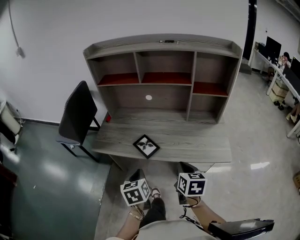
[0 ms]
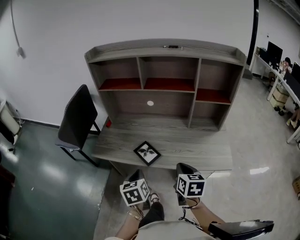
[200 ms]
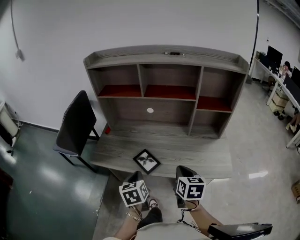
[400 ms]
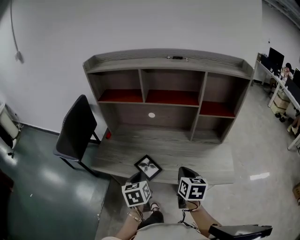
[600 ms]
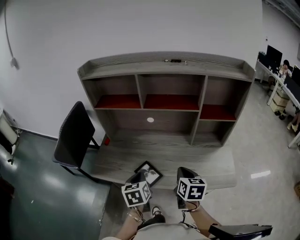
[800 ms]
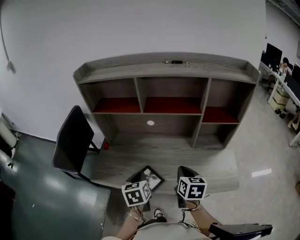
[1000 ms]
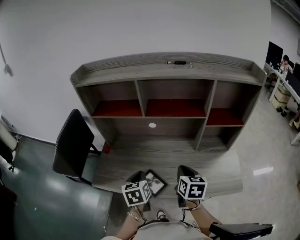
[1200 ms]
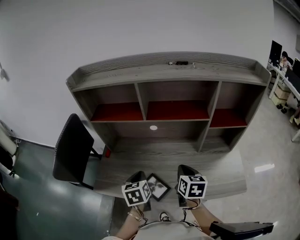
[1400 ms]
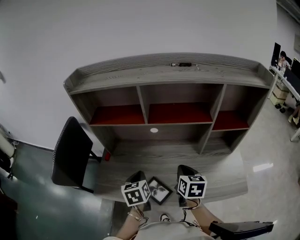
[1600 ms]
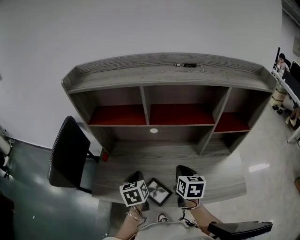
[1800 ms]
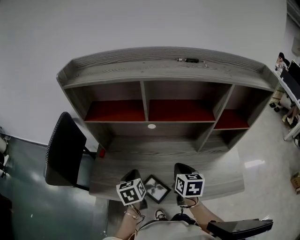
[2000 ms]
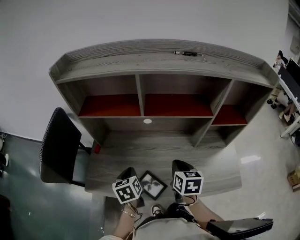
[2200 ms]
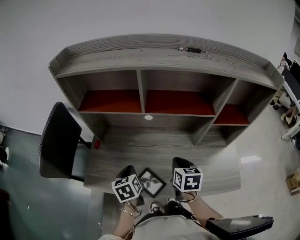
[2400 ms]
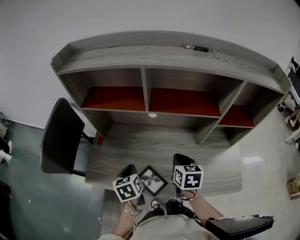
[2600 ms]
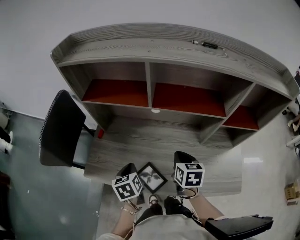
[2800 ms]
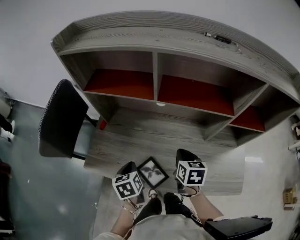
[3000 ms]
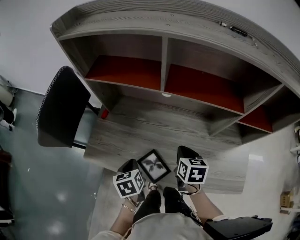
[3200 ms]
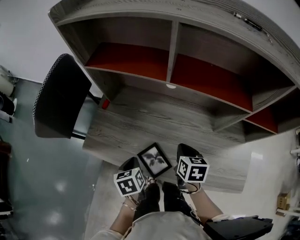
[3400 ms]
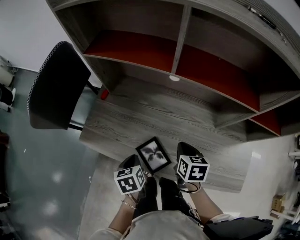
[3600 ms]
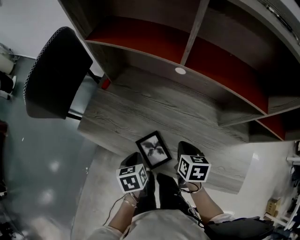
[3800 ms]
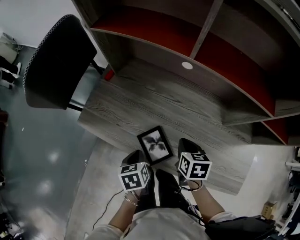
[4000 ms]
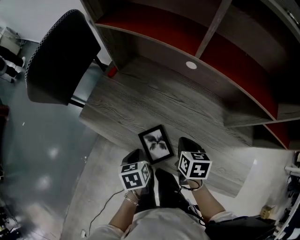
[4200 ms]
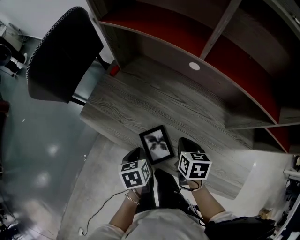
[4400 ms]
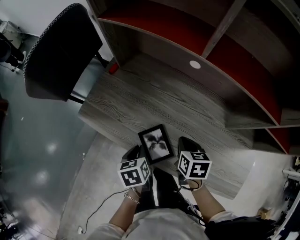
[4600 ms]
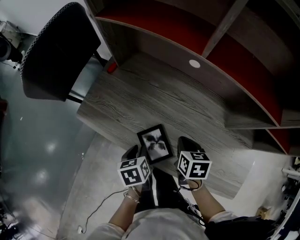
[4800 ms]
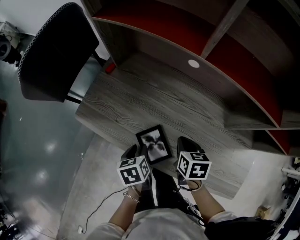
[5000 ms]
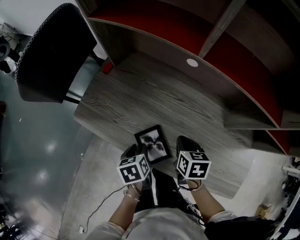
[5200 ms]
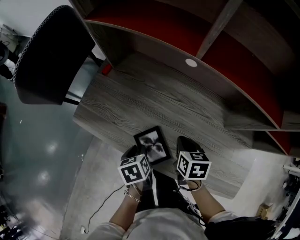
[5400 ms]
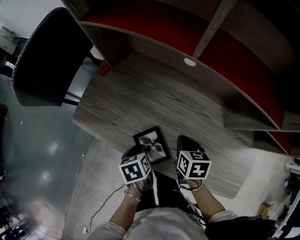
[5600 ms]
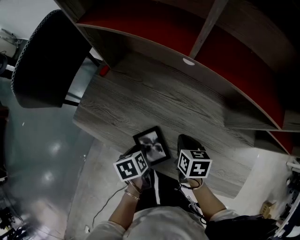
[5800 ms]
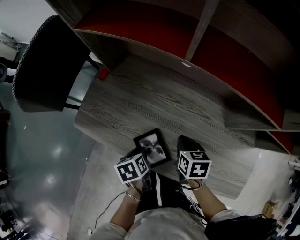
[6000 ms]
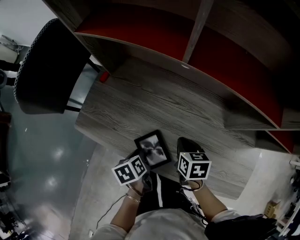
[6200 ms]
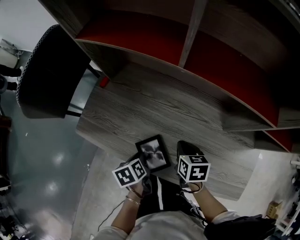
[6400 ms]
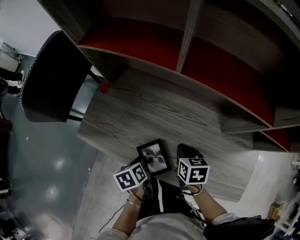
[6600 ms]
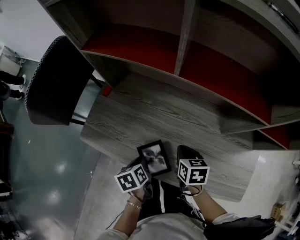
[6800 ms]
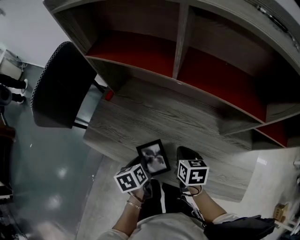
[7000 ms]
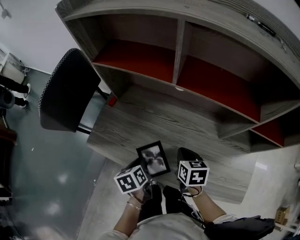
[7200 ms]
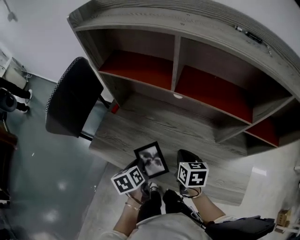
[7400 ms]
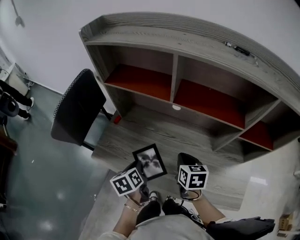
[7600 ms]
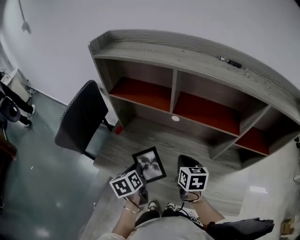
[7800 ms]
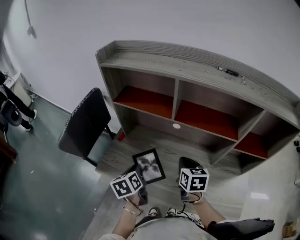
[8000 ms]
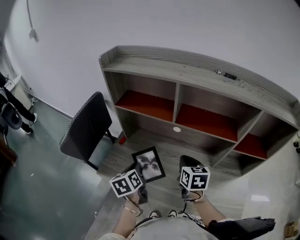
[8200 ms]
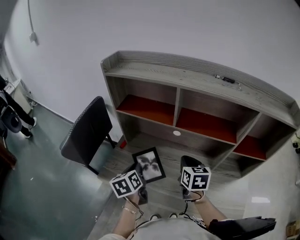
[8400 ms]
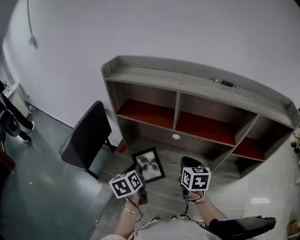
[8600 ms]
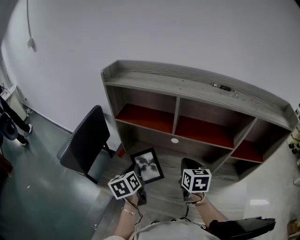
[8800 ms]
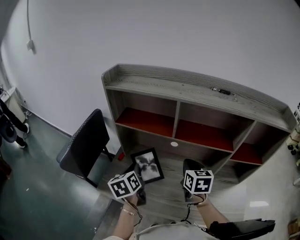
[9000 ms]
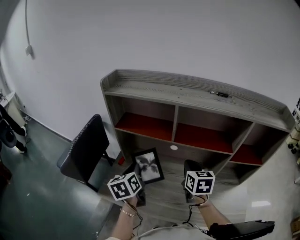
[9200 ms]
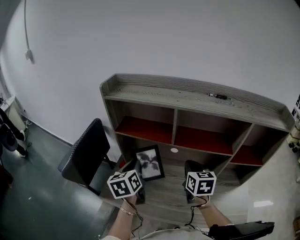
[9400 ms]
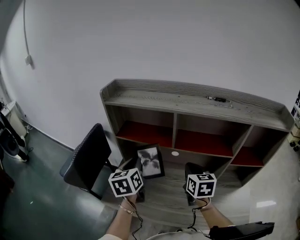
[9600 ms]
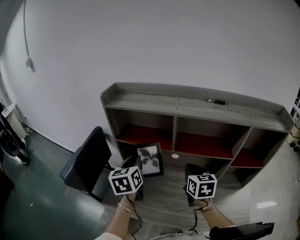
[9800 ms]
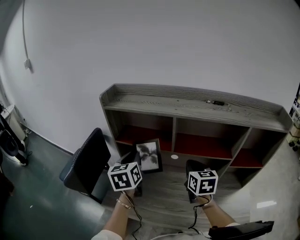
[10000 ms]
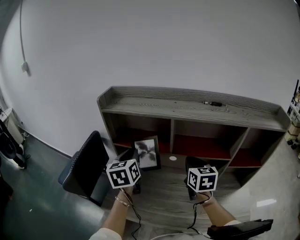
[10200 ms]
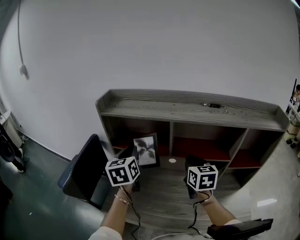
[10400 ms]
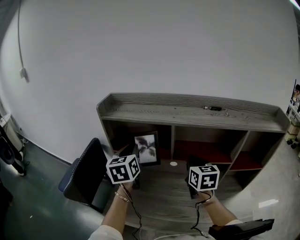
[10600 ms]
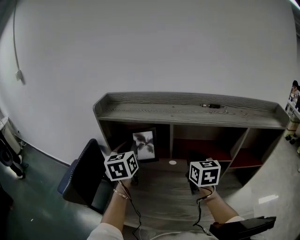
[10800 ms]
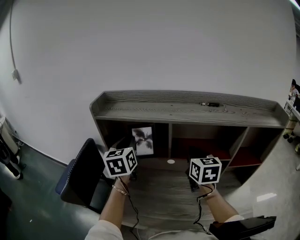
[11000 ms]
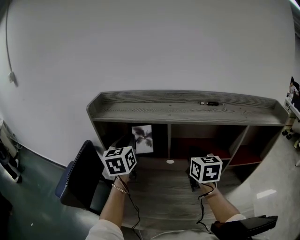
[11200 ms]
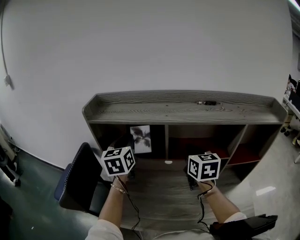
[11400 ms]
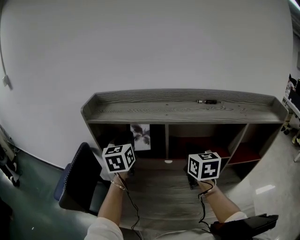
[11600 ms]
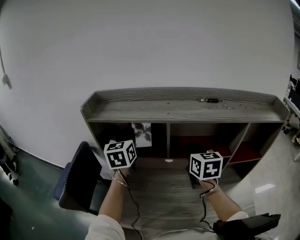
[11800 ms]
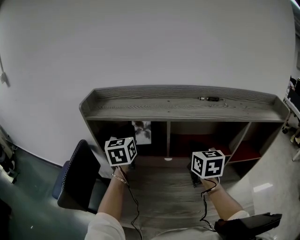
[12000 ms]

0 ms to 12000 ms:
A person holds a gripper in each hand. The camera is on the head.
0 ms to 1600 ms: The grippers both shift forward by approximately 30 cm.
1600 ms to 3000 ms: The grippers both shift downward by roughly 5 cm.
3000 ms to 4400 ms: The right gripper goes some 10 cm downward, and swivels about 20 degrees. Meanwhile the left gripper travels downward and backward by some 15 cm.
4400 ms to 6000 ms: The grippers move only a little.
6000 ms to 7600 ms: Both grippers travel together upward, roughly 15 cm. The left gripper changes its angle by roughly 20 degrees.
7600 ms to 9000 ms: Both grippers travel together upward and forward, some 15 cm.
9000 ms to 10400 ms: The left gripper heads upward and forward, covering roughly 20 cm, and changes its angle by roughly 20 degrees. The right gripper travels upward by about 10 cm.
10400 ms to 12000 ms: The right gripper moves about 5 cm. The left gripper travels forward by some 10 cm.

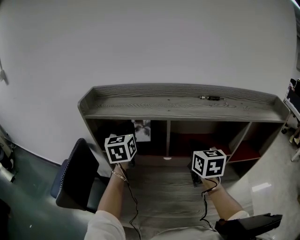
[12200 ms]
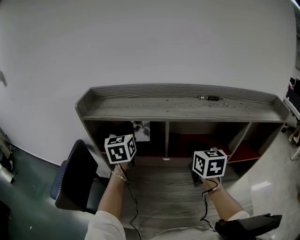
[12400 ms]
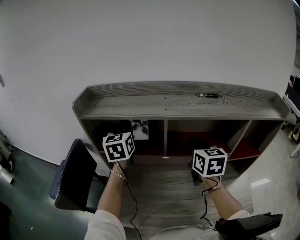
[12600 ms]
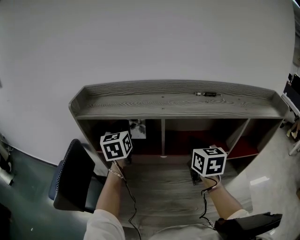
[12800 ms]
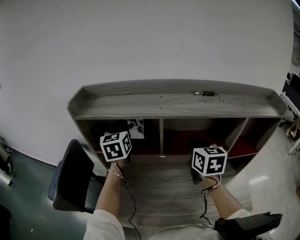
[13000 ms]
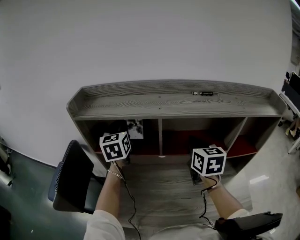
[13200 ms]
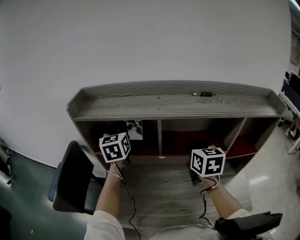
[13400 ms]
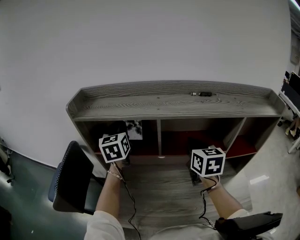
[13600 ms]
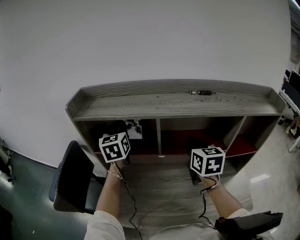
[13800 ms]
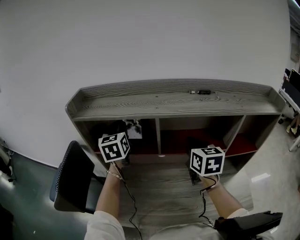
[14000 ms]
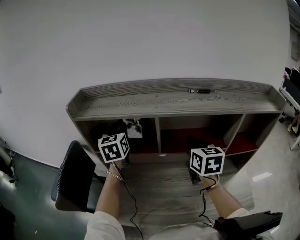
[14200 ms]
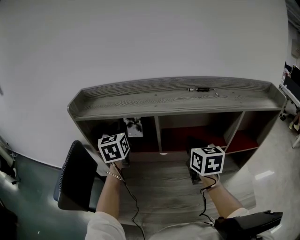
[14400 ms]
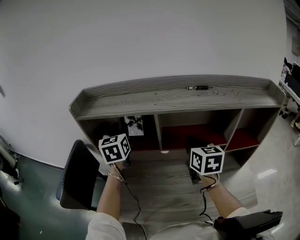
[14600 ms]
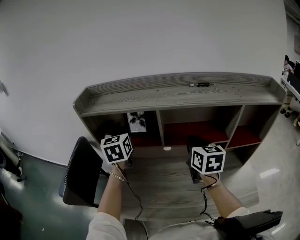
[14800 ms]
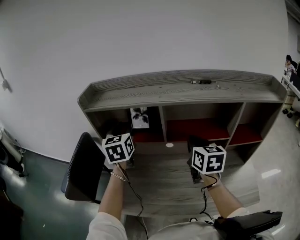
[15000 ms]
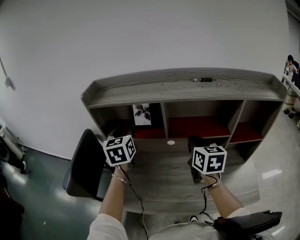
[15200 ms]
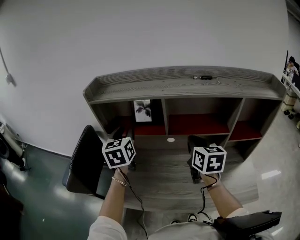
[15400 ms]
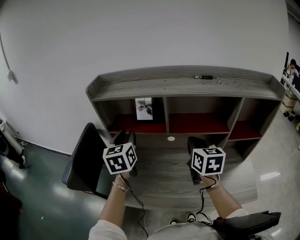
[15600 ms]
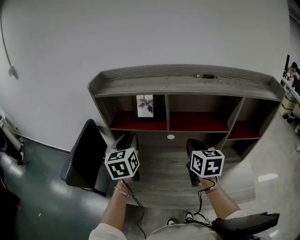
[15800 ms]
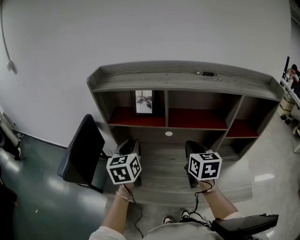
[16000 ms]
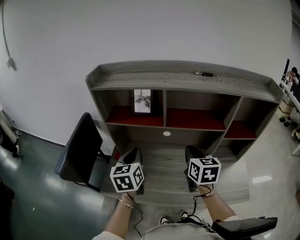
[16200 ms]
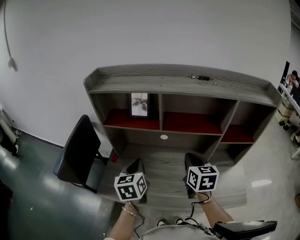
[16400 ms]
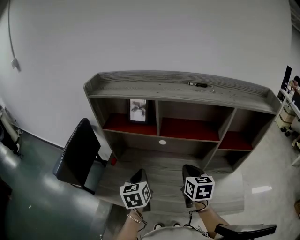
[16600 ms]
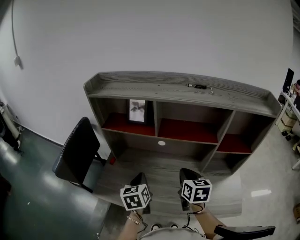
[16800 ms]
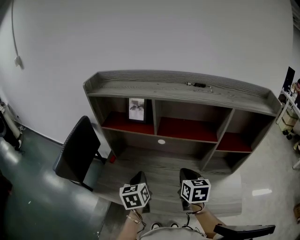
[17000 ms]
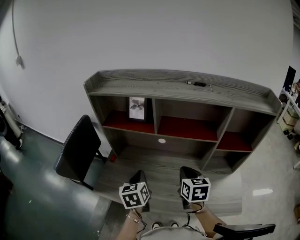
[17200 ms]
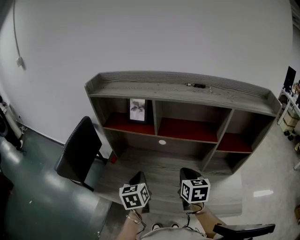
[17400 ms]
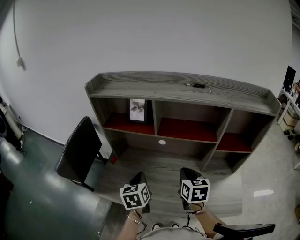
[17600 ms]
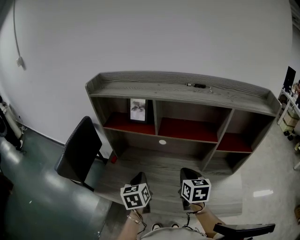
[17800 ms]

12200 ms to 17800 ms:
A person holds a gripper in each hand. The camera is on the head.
12200 ms to 13600 ms: The grippers stay close to where they were, moving slightly.
13600 ms to 15000 ms: The left gripper moves backward, about 5 cm. The right gripper ends up roughly 5 cm from where it was.
15000 ms to 16400 ms: The left gripper is displaced backward and downward by about 25 cm, and closes its fingers. Meanwhile the right gripper goes roughly 10 cm backward and downward.
16400 ms to 17800 ms: The right gripper ends up some 5 cm from where it was. The left gripper changes place by about 5 cm.

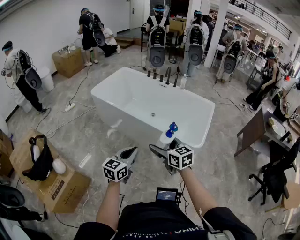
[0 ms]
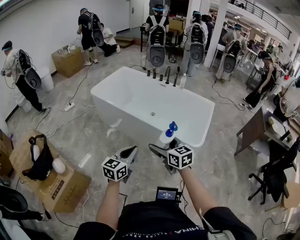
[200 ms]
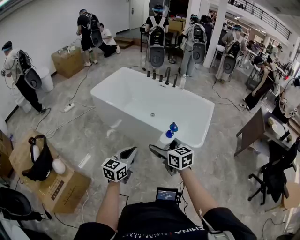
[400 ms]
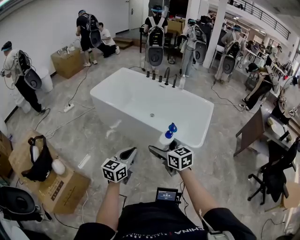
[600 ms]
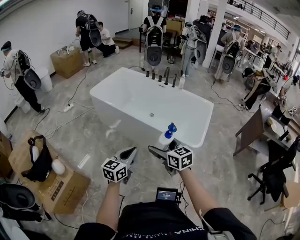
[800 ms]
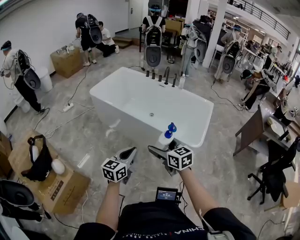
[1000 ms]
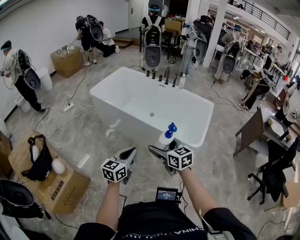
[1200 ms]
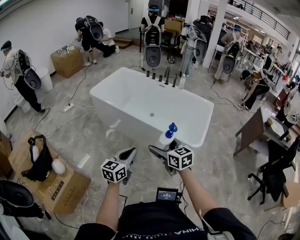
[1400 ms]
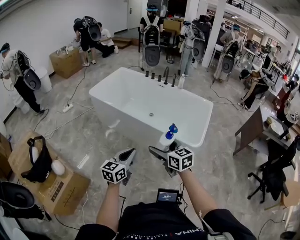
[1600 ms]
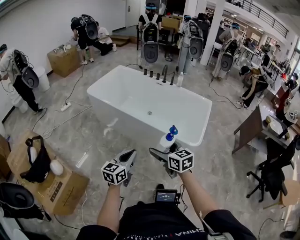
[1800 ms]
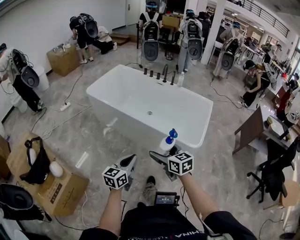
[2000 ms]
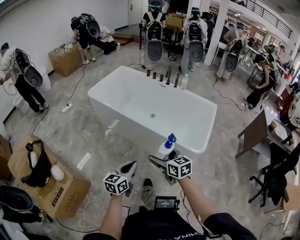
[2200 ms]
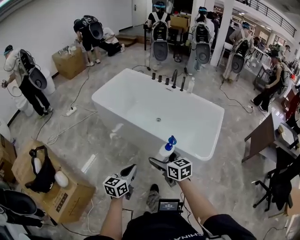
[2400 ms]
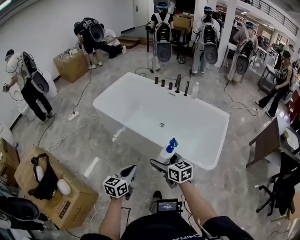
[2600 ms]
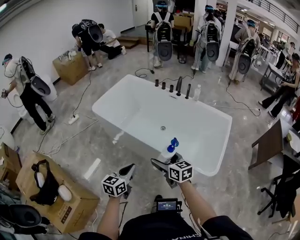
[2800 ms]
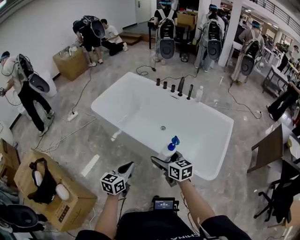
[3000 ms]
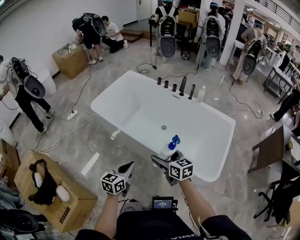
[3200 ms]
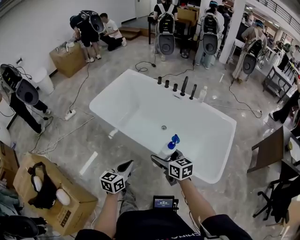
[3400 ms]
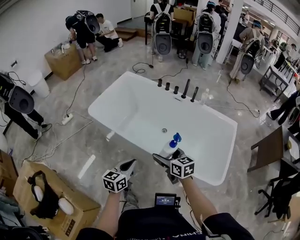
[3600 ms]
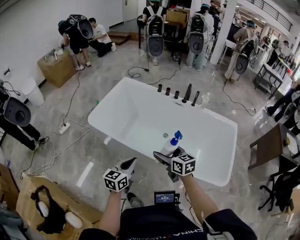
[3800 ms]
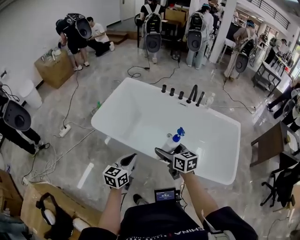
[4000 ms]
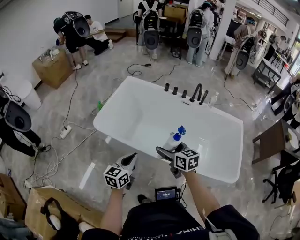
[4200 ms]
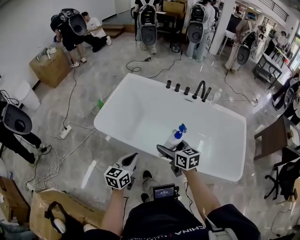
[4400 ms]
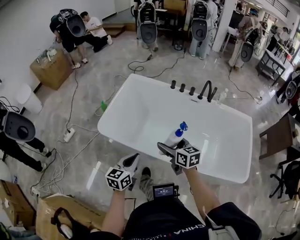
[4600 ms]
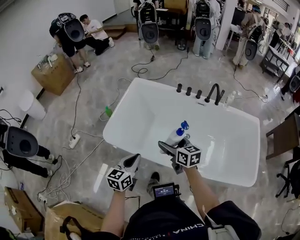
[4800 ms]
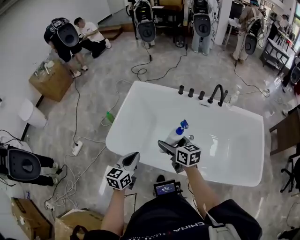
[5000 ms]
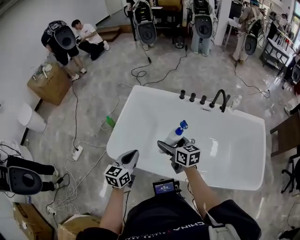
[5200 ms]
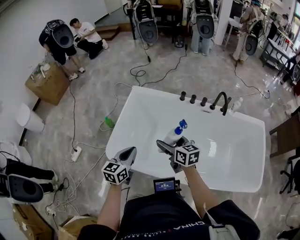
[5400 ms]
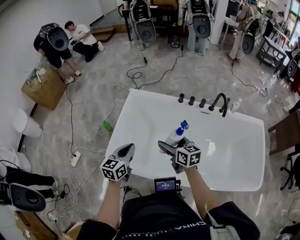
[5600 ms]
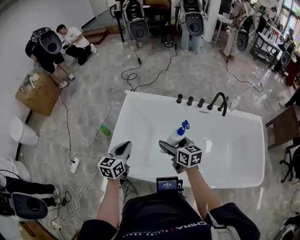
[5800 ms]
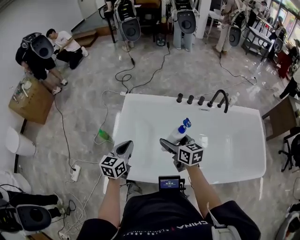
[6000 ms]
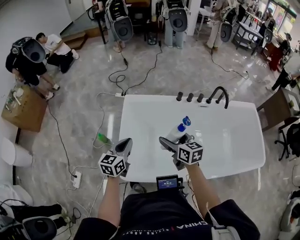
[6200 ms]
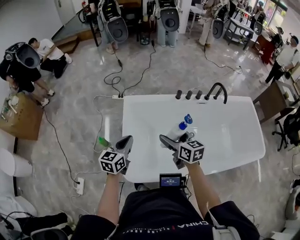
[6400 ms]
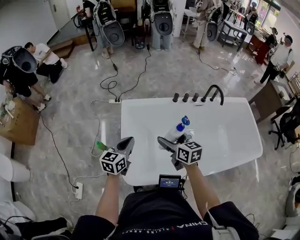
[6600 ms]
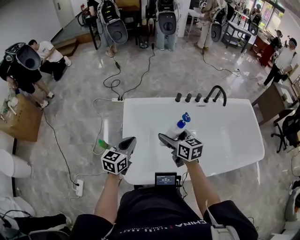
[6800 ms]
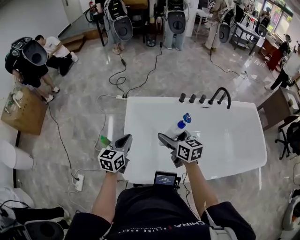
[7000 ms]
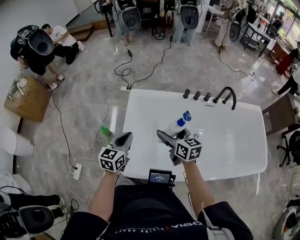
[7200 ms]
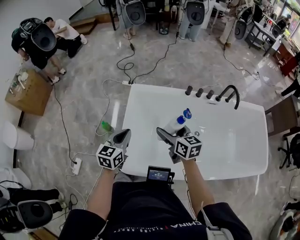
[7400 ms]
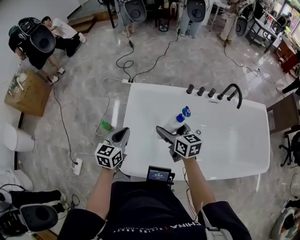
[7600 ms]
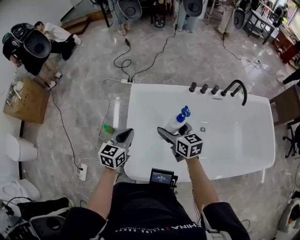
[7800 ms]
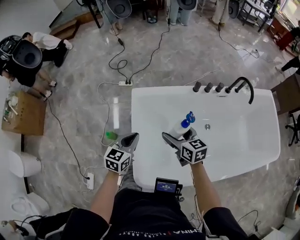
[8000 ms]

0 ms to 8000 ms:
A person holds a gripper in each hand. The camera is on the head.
0 ms to 1600 ms: The grippers make only small movements.
1600 ms to 3200 ms: The two grippers go roughly 35 cm forward.
3200 ms to 4800 ms: The pair of grippers is taken forward and to the left, roughly 50 cm.
4800 ms to 6400 ms: The two grippers go roughly 40 cm forward and to the left. The left gripper changes its angle by some 20 degrees, while the right gripper turns by about 20 degrees.
6400 ms to 8000 ms: Both grippers move forward and downward, some 15 cm.
